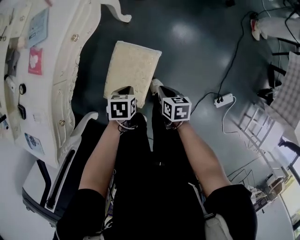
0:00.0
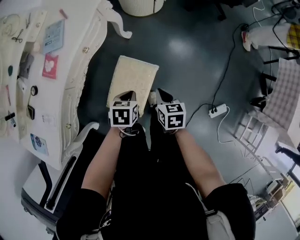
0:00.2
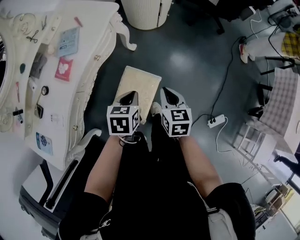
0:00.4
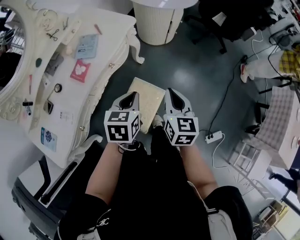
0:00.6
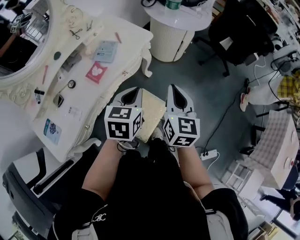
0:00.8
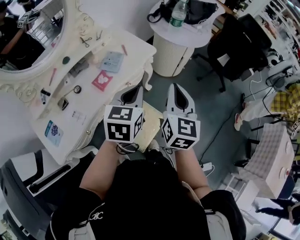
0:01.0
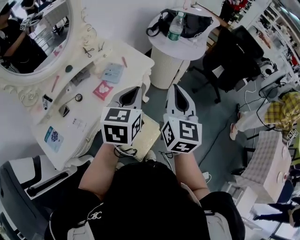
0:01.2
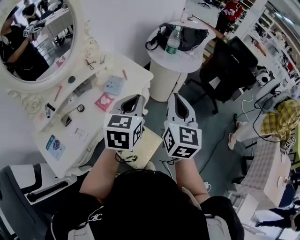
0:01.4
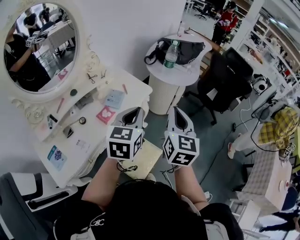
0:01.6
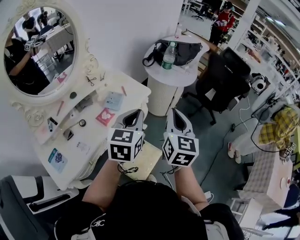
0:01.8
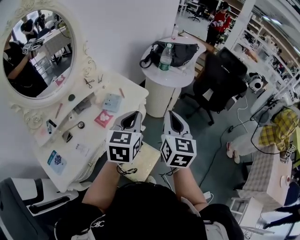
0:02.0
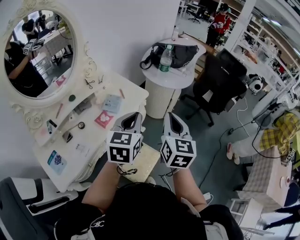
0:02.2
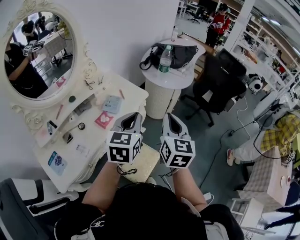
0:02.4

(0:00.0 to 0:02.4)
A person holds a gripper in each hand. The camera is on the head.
0:00.0 - 0:01.2: Both grippers travel together upward, some 50 cm. The right gripper points its fingers some 50 degrees further upward, while the left gripper tips its fingers upward by some 50 degrees.
0:01.2 - 0:02.4: The grippers move only a little.

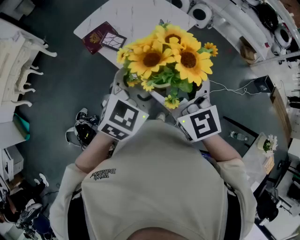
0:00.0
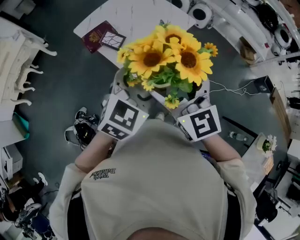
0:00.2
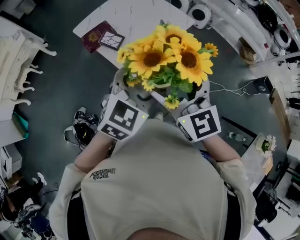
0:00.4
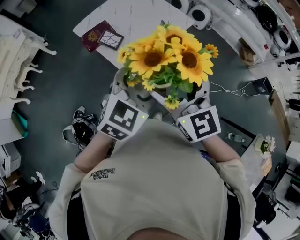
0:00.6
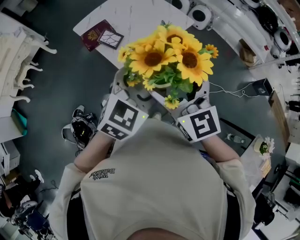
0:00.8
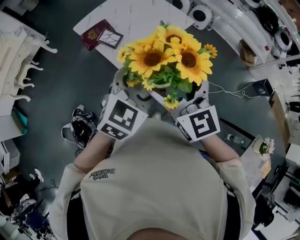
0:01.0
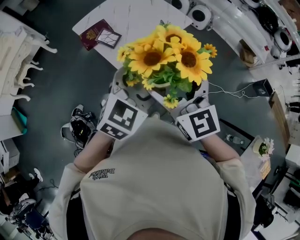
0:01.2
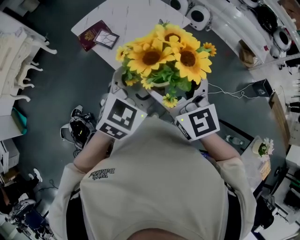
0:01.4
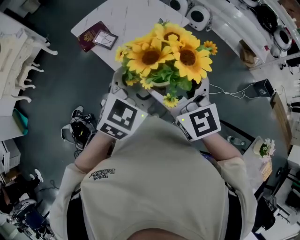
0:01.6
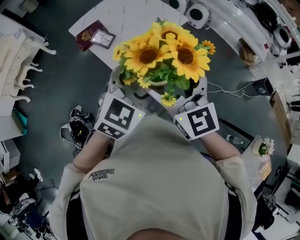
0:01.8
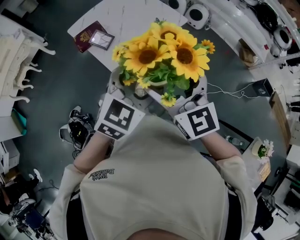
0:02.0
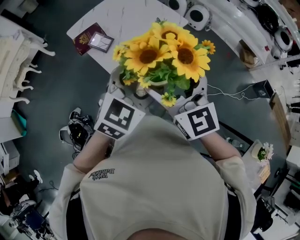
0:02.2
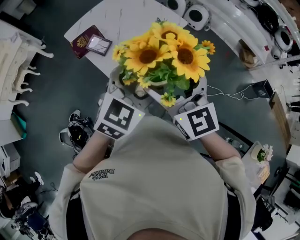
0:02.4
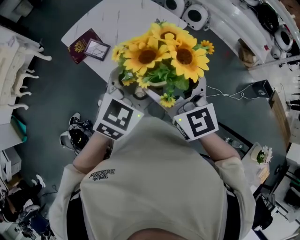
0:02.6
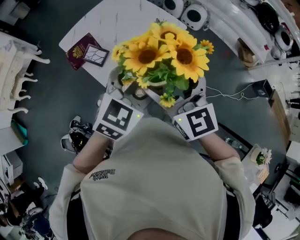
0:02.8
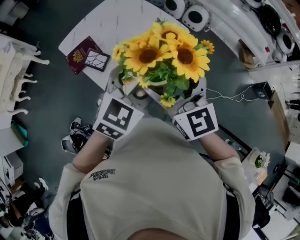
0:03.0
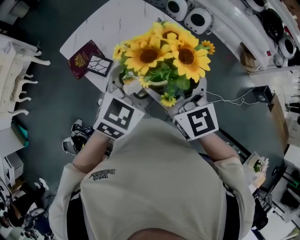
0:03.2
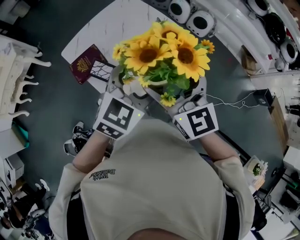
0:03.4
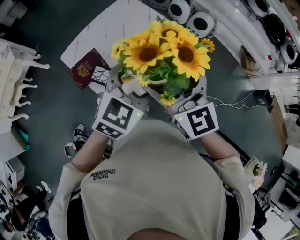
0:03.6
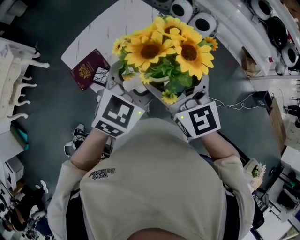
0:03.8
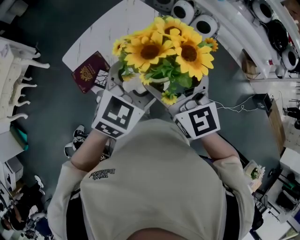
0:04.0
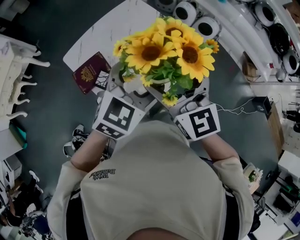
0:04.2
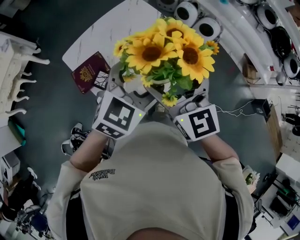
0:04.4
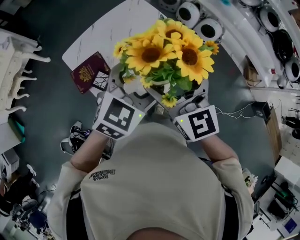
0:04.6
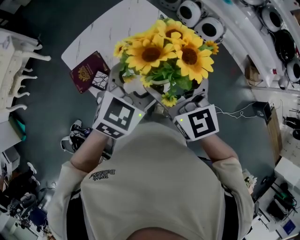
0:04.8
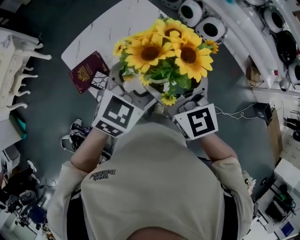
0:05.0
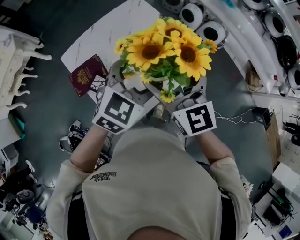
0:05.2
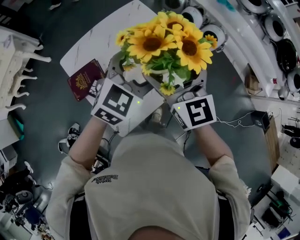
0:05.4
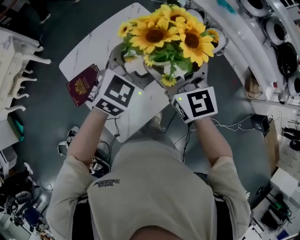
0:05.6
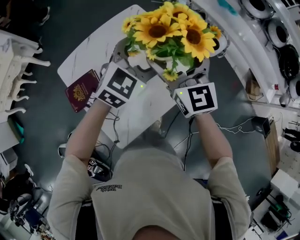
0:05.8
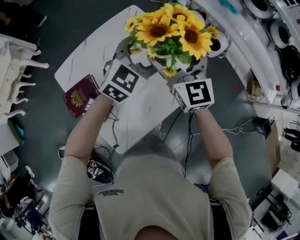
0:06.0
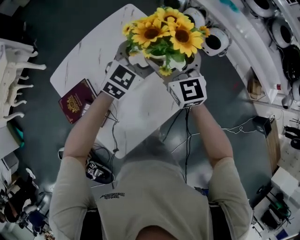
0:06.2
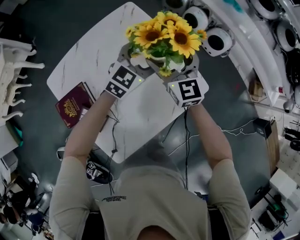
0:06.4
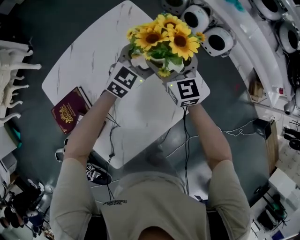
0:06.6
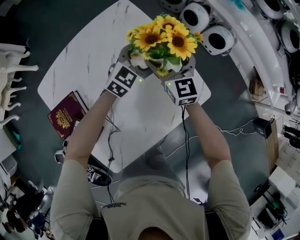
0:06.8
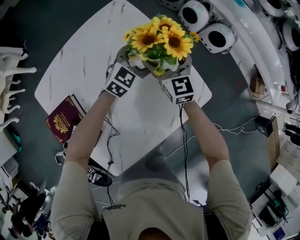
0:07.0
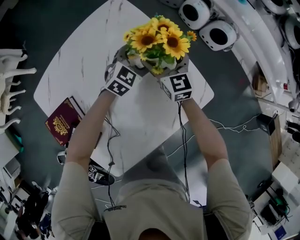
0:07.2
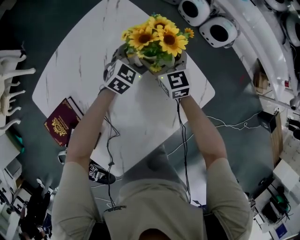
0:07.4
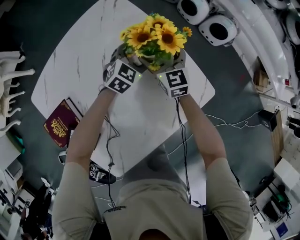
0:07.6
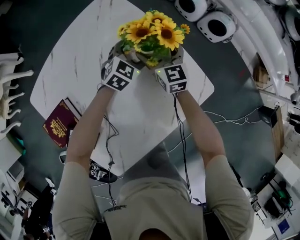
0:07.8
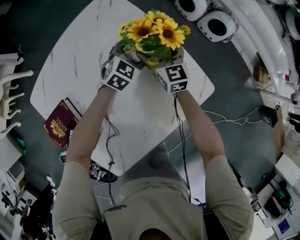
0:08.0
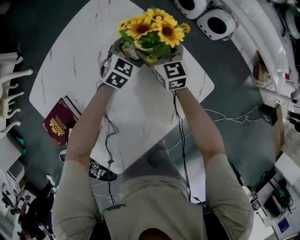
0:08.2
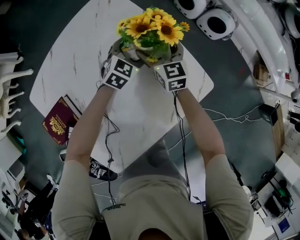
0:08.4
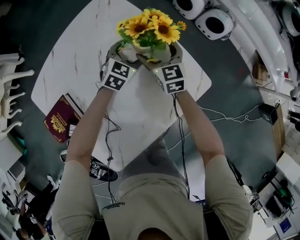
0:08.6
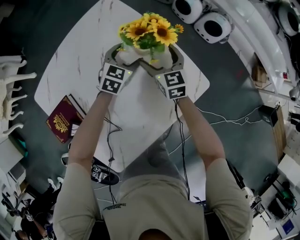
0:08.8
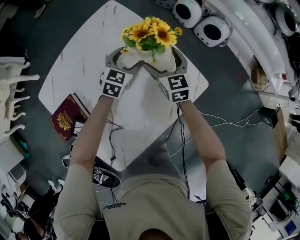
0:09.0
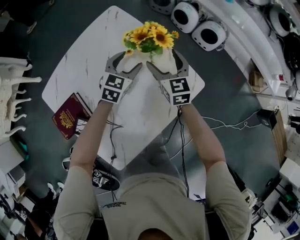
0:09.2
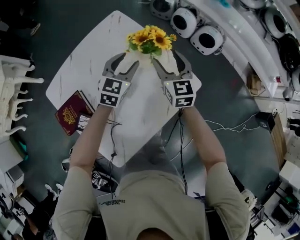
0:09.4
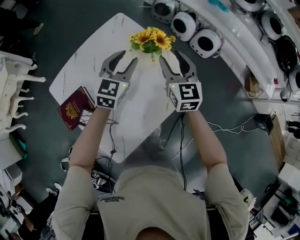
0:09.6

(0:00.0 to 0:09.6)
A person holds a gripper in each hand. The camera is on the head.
0:00.0 - 0:01.6: The two grippers go roughly 10 cm to the right.
0:01.6 - 0:03.2: The two grippers go approximately 20 cm forward.
0:03.2 - 0:04.8: The grippers both shift forward by roughly 15 cm.
0:04.8 - 0:06.4: The two grippers go approximately 35 cm forward and downward.
0:06.4 - 0:08.0: The right gripper is displaced downward and forward by some 20 cm. The left gripper goes about 20 cm downward.
0:08.0 - 0:09.6: The two grippers go approximately 25 cm upward and backward. The right gripper closes its fingers, while the left gripper rotates roughly 20 degrees, and closes up.

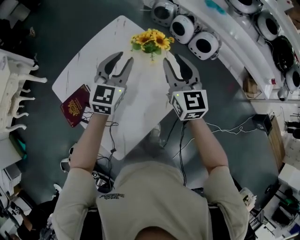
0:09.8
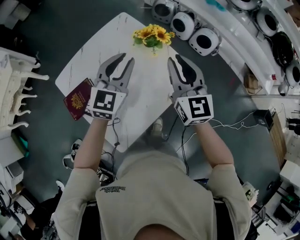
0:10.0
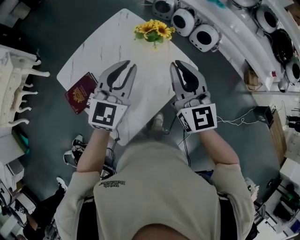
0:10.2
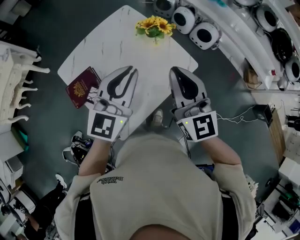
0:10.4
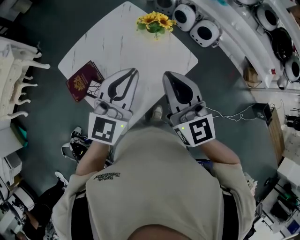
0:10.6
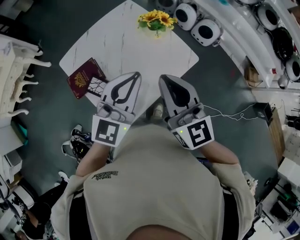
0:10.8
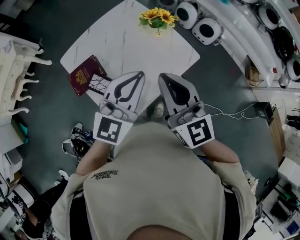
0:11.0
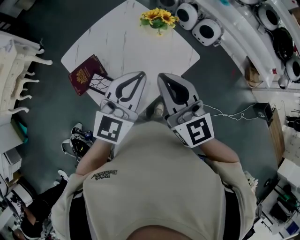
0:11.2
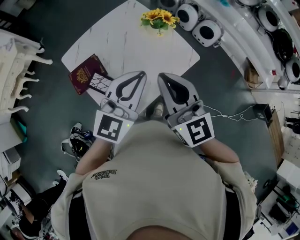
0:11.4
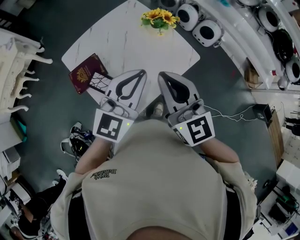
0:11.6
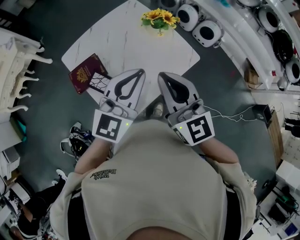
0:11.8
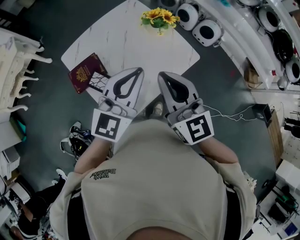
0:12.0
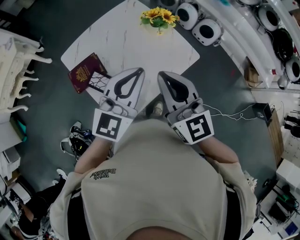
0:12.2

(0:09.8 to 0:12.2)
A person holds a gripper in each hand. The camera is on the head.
0:09.8 - 0:11.0: Both grippers move backward and upward, roughly 25 cm.
0:11.0 - 0:12.2: Both grippers stay about where they are.

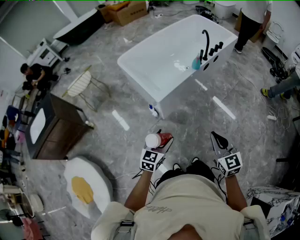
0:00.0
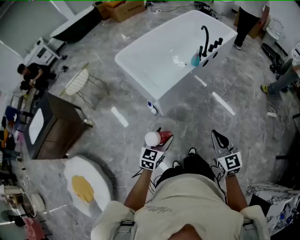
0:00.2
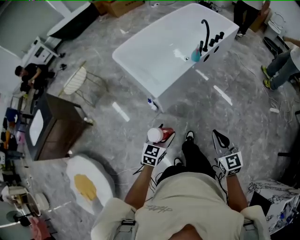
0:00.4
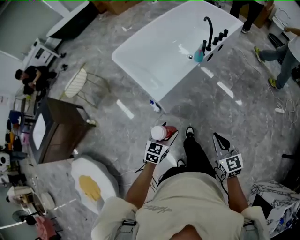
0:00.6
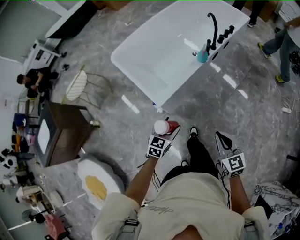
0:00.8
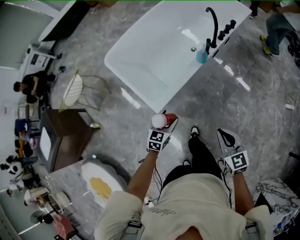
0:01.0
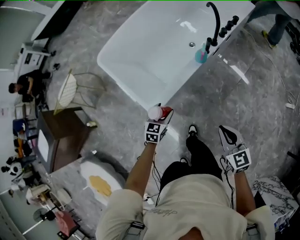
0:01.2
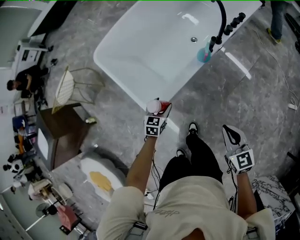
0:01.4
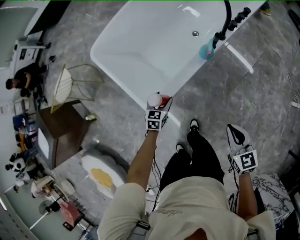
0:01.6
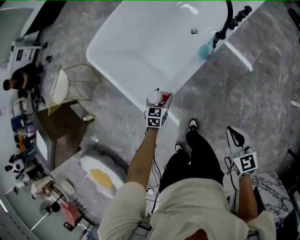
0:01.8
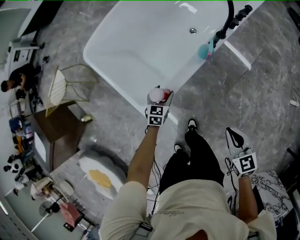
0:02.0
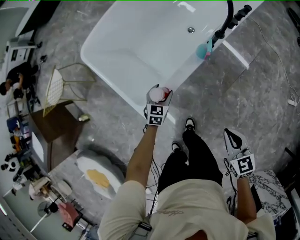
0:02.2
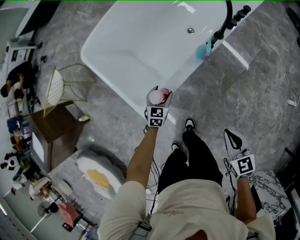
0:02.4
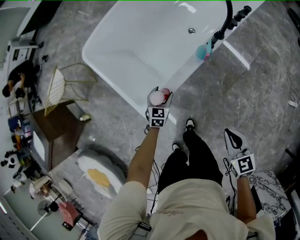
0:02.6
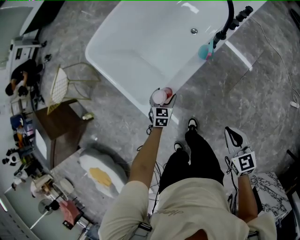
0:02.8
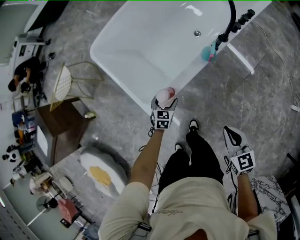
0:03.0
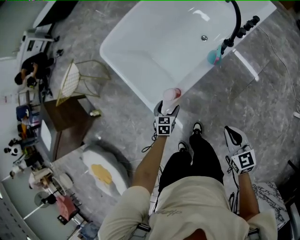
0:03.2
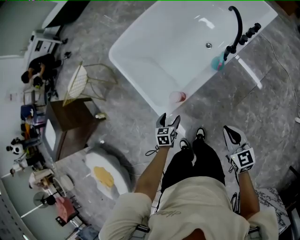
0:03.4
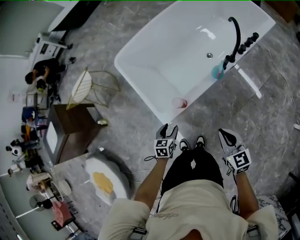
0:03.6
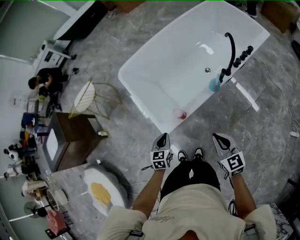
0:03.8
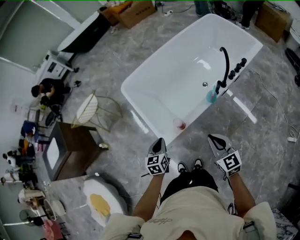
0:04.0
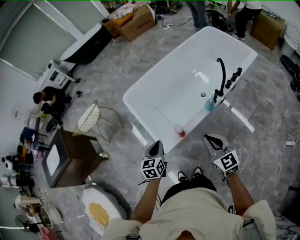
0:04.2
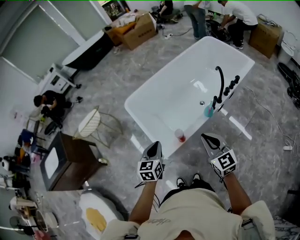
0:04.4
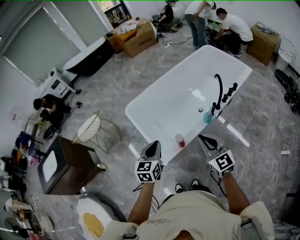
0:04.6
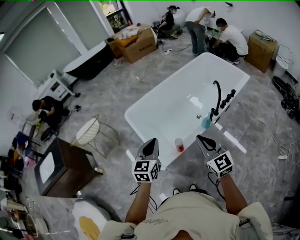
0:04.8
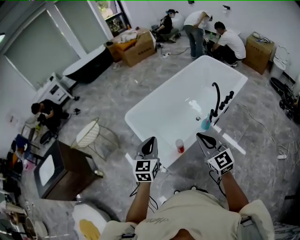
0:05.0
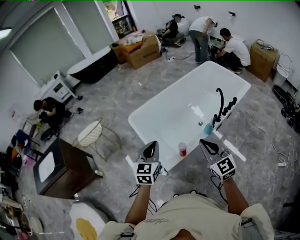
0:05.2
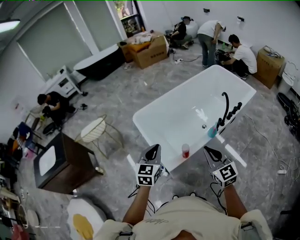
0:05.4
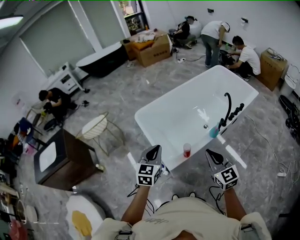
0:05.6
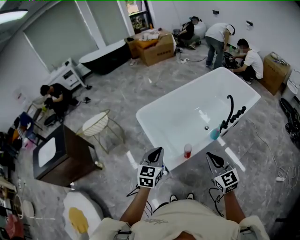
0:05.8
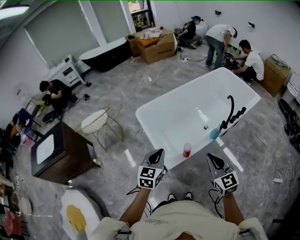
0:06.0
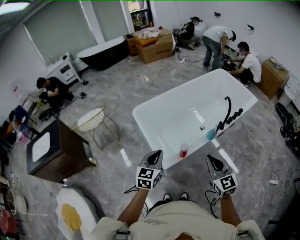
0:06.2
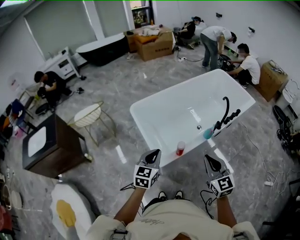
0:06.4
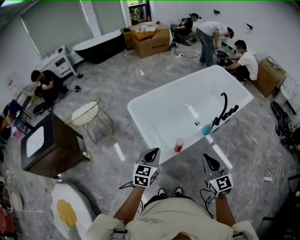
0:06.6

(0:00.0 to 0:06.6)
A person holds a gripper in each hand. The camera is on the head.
0:00.0 - 0:01.6: The grippers both shift forward and downward by approximately 40 cm. The left gripper rotates roughly 20 degrees.
0:01.6 - 0:03.2: The grippers stay close to where they were, moving slightly.
0:03.2 - 0:05.0: The right gripper is displaced upward and to the left by approximately 30 cm, and changes its angle by some 40 degrees. Meanwhile the left gripper shifts roughly 40 cm upward, tips its fingers upward by roughly 40 degrees, and closes its fingers.
0:05.0 - 0:06.6: The right gripper travels backward by about 5 cm, while the left gripper goes approximately 10 cm downward and backward.

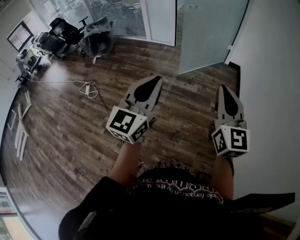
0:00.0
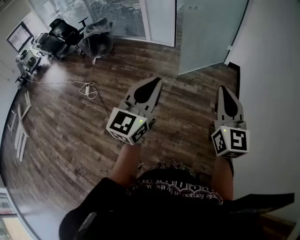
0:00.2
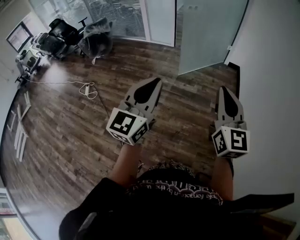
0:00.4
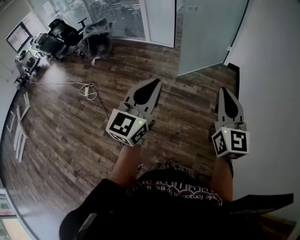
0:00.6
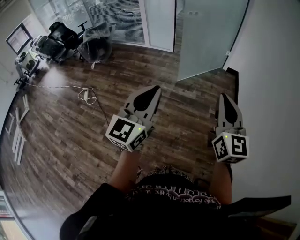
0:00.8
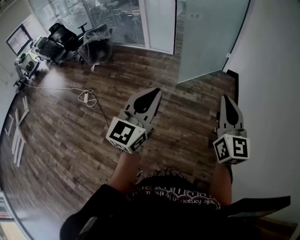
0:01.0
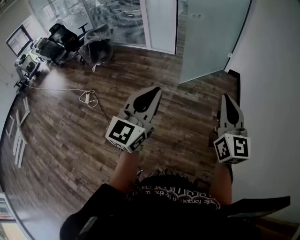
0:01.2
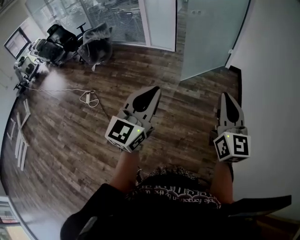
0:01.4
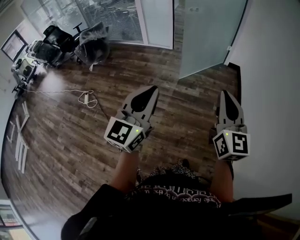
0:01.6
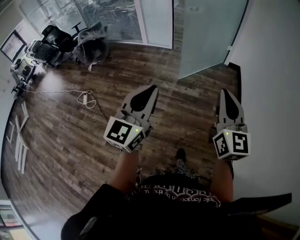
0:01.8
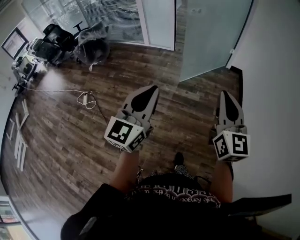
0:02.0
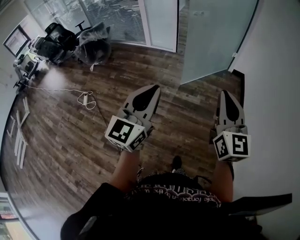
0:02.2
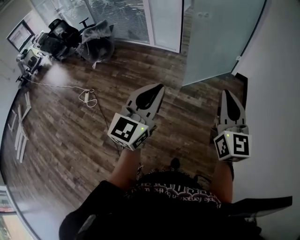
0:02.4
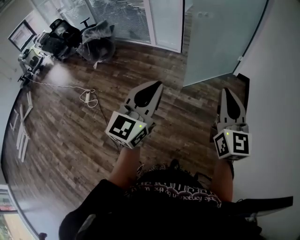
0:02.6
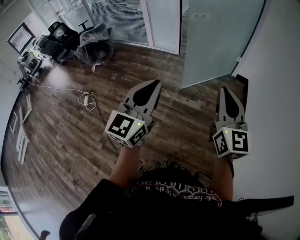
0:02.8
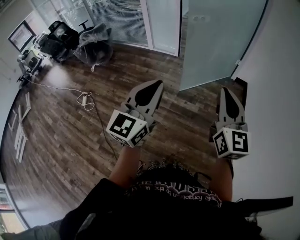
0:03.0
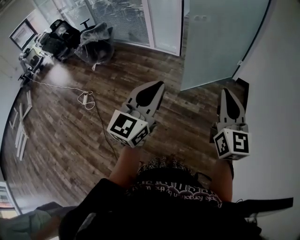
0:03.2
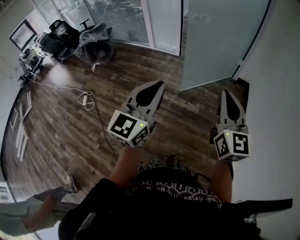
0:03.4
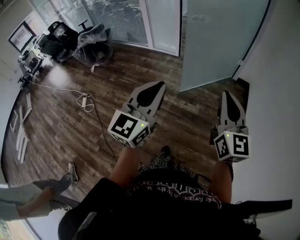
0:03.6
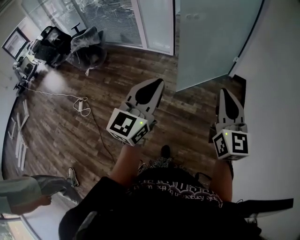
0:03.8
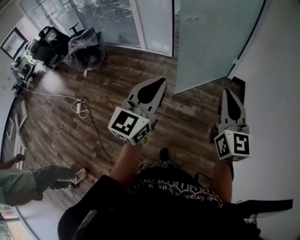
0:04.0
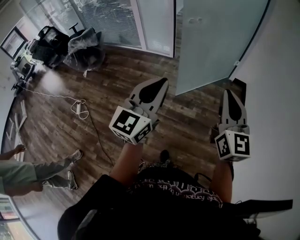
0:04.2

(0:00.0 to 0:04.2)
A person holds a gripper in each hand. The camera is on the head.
0:00.0 - 0:01.4: The grippers both shift to the left by approximately 5 cm.
0:01.4 - 0:02.8: Both grippers move forward, roughly 20 cm.
0:02.8 - 0:04.2: Both grippers move forward, approximately 15 cm.
